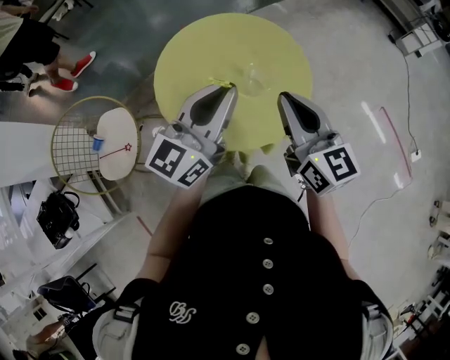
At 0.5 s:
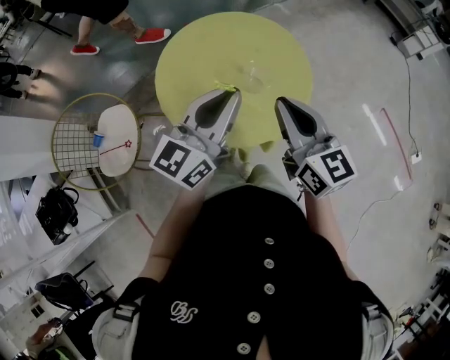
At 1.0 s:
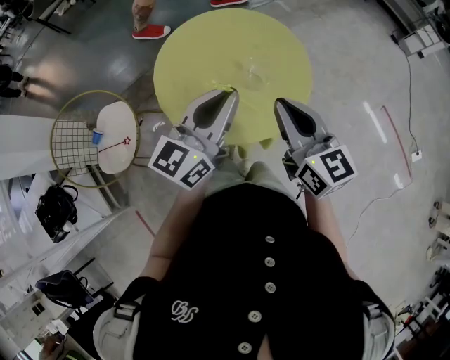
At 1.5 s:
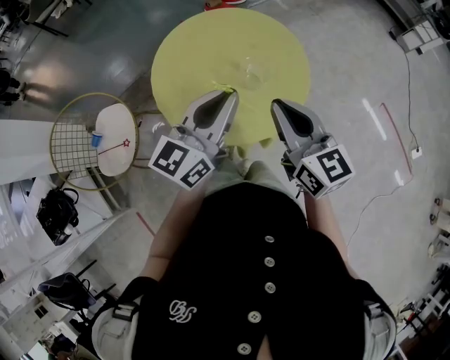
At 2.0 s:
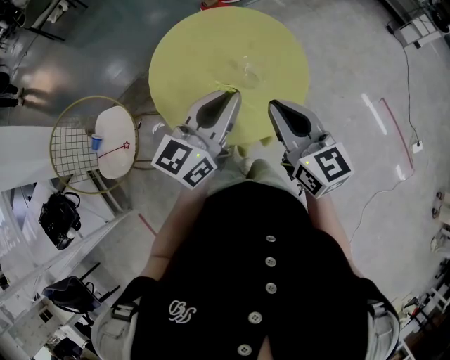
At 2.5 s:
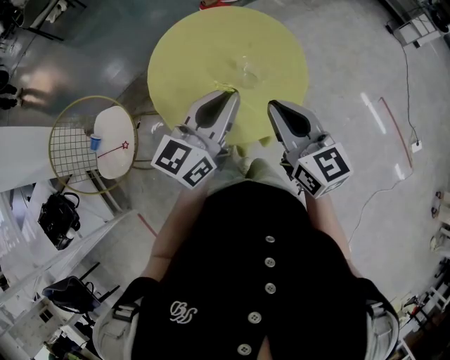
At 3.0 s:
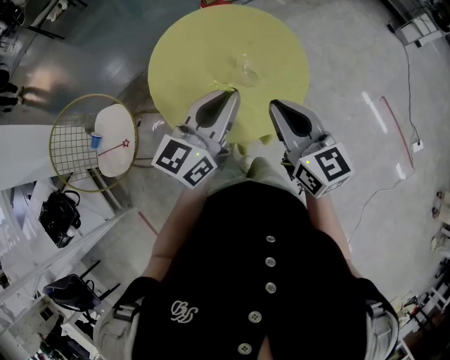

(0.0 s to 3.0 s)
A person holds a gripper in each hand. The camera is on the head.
0.0 s - 3.0 s: The grippers stay close to where they were, moving slightly.

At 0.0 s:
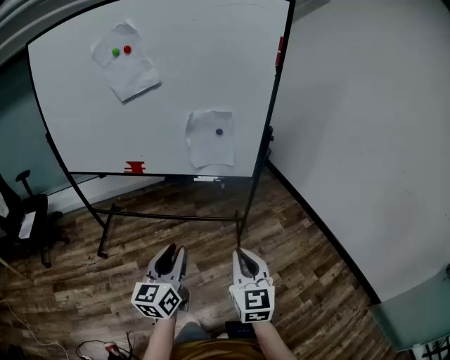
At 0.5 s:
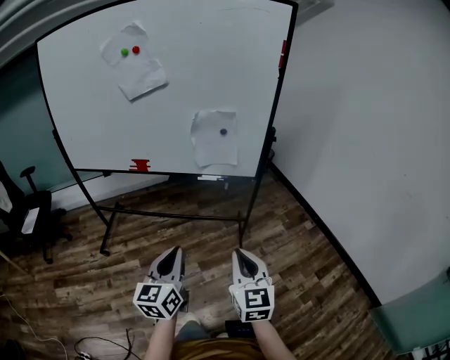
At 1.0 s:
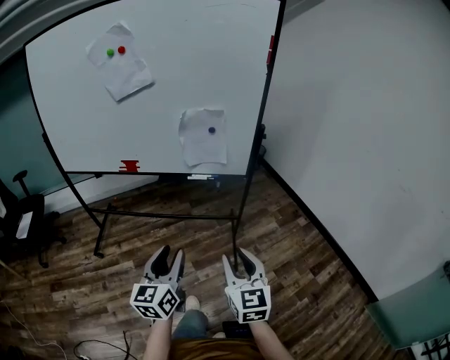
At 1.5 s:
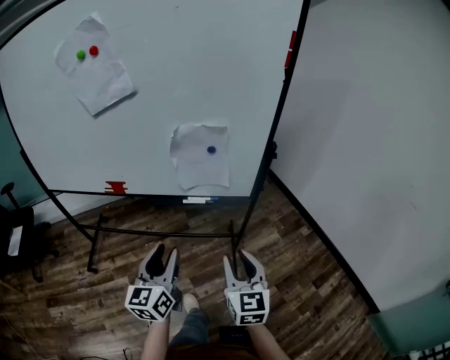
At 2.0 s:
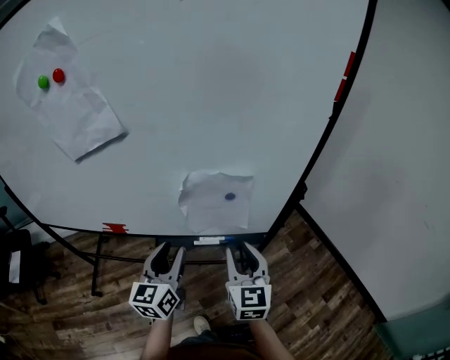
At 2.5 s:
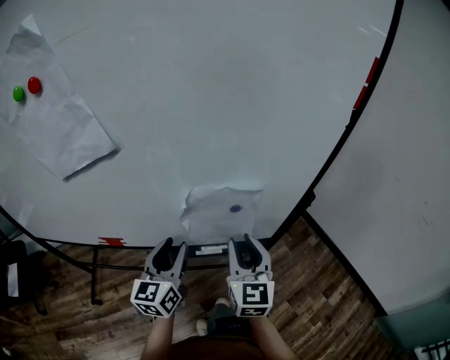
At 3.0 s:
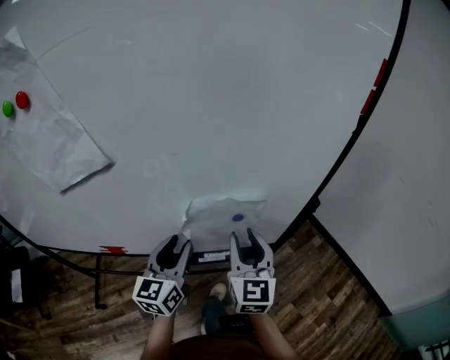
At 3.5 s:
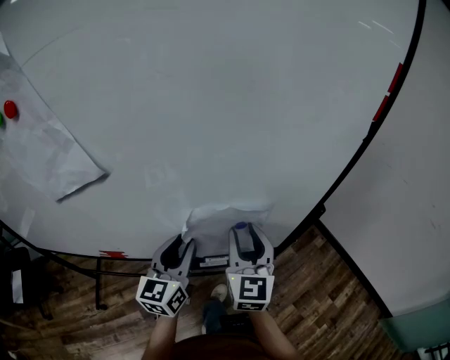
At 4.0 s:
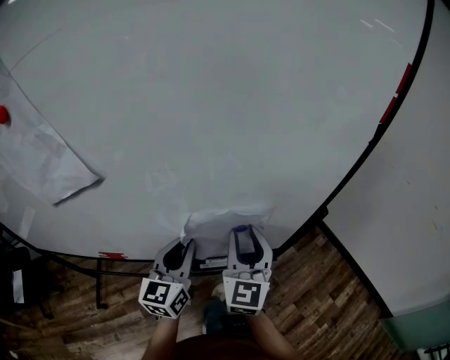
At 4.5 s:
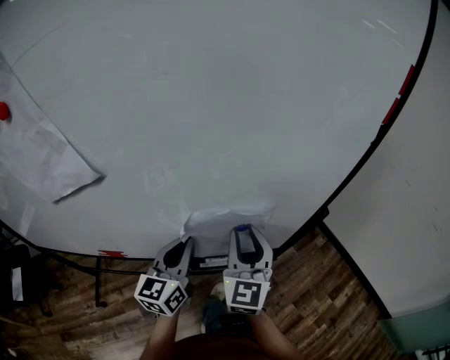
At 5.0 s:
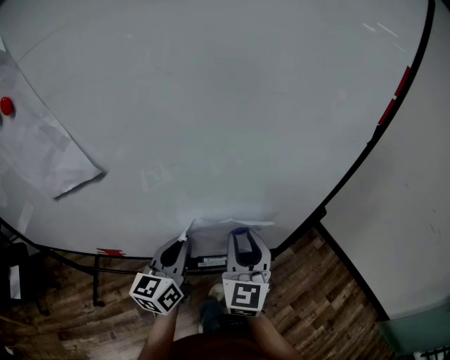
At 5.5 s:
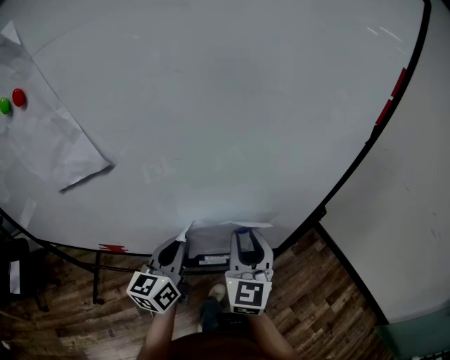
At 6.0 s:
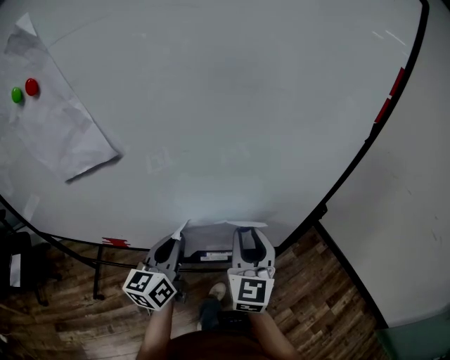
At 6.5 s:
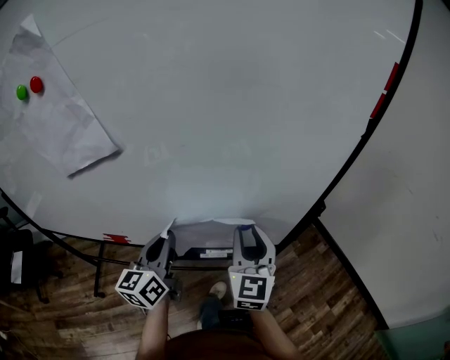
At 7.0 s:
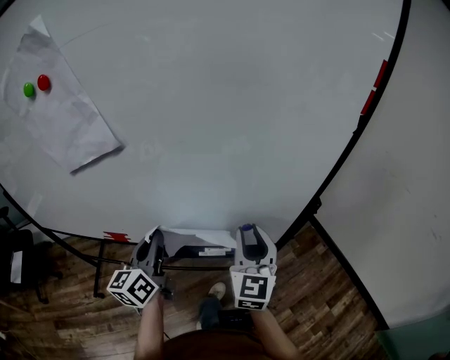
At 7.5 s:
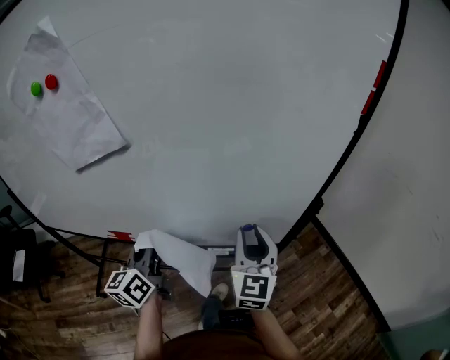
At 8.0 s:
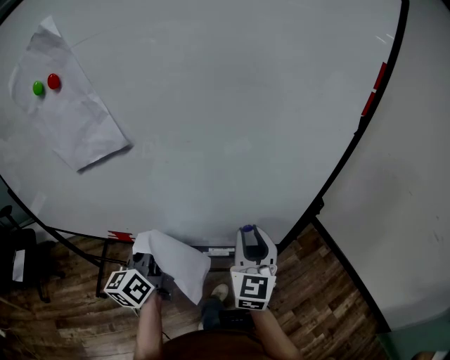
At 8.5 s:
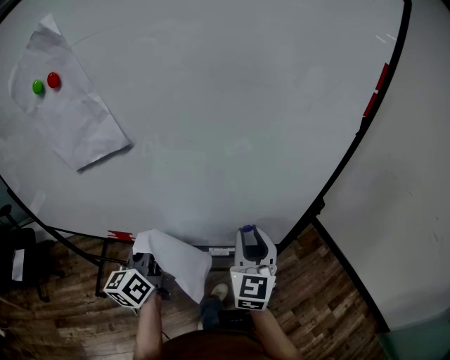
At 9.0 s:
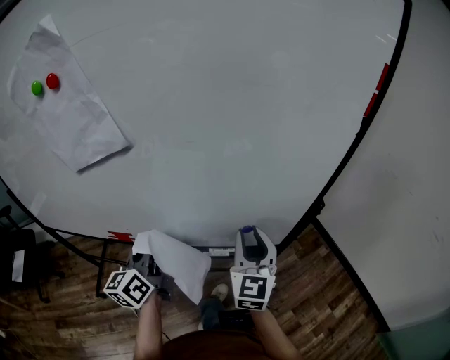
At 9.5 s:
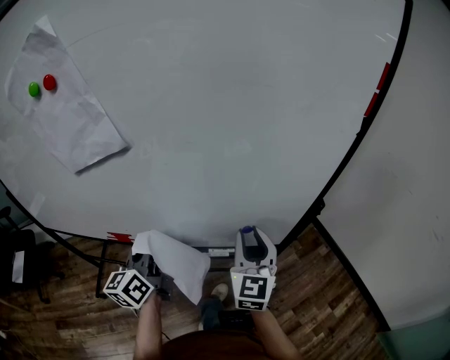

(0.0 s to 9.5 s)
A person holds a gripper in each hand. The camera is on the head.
0.0 s - 2.0 s: Both grippers move forward, about 40 cm. The left gripper closes, then reopens. Meanwhile the right gripper opens up.
2.0 s - 4.0 s: The two grippers go roughly 15 cm forward. The left gripper closes its fingers.
4.0 s - 5.5 s: There are only small adjustments of the grippers.
5.5 s - 7.5 s: The left gripper is displaced to the left and backward by roughly 10 cm.
7.5 s - 9.5 s: Both grippers stay about where they are.

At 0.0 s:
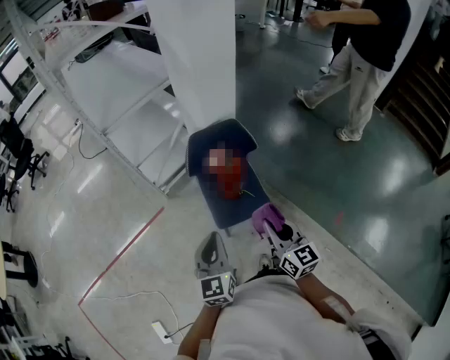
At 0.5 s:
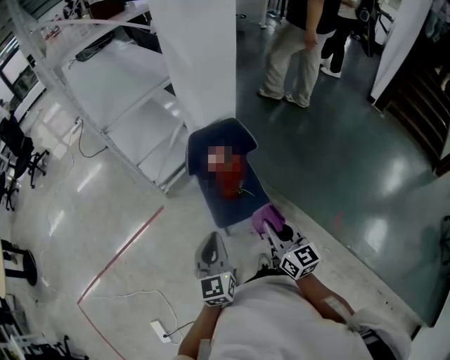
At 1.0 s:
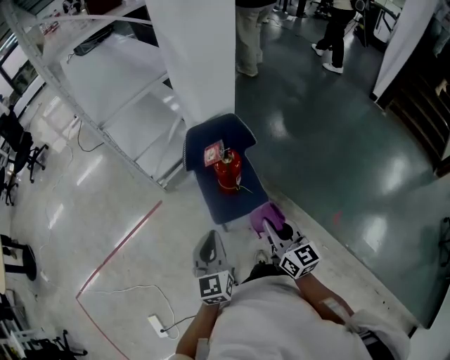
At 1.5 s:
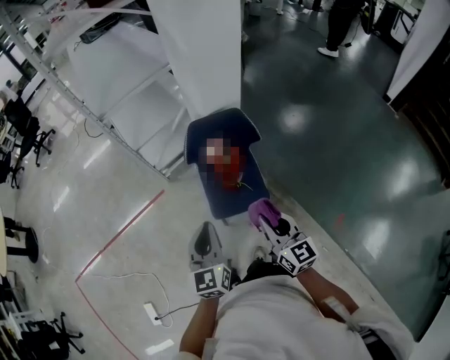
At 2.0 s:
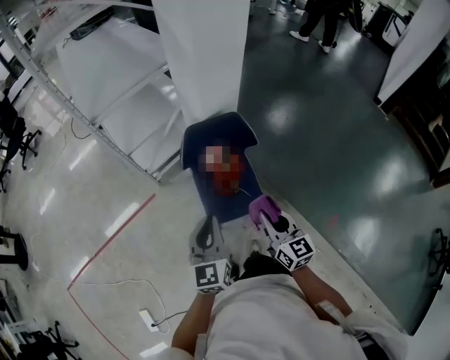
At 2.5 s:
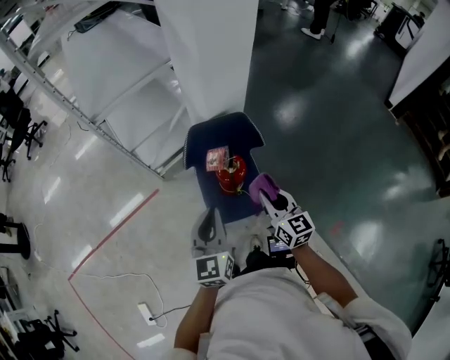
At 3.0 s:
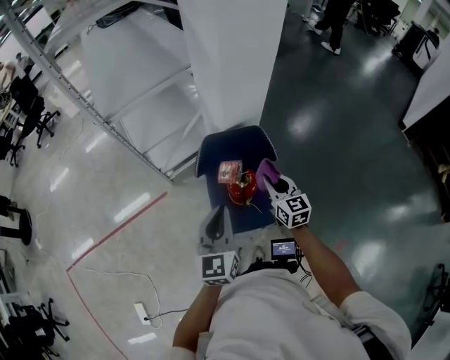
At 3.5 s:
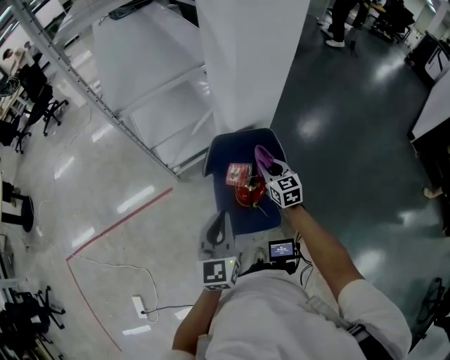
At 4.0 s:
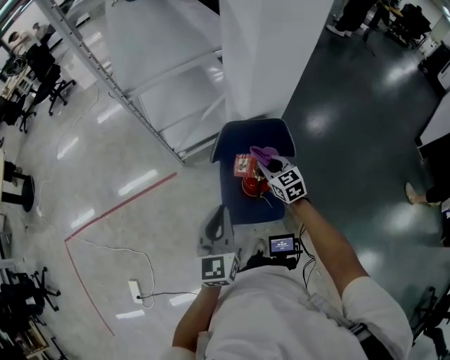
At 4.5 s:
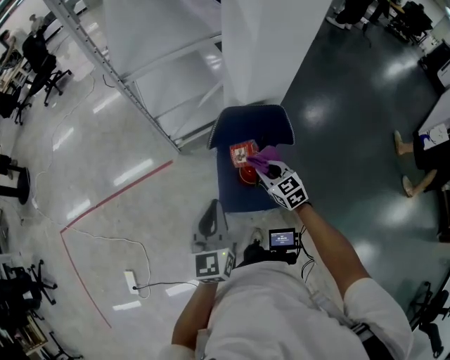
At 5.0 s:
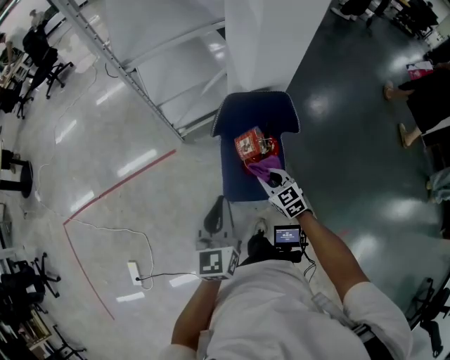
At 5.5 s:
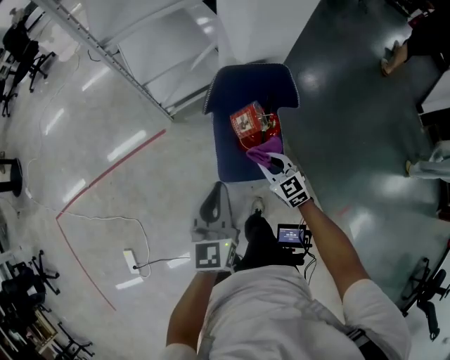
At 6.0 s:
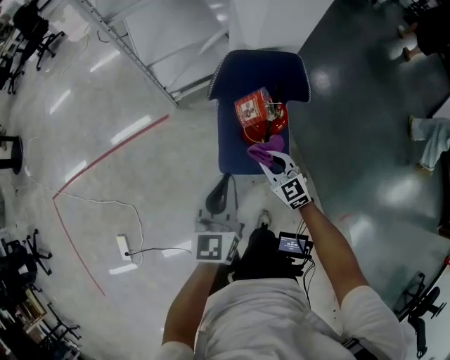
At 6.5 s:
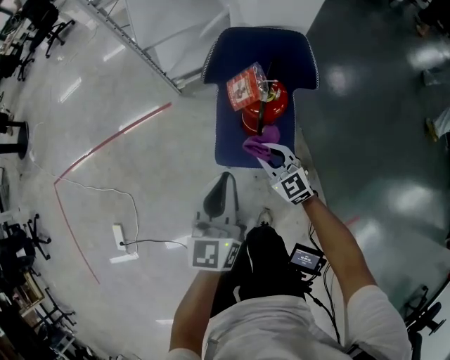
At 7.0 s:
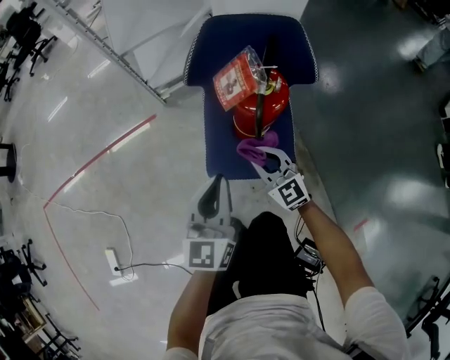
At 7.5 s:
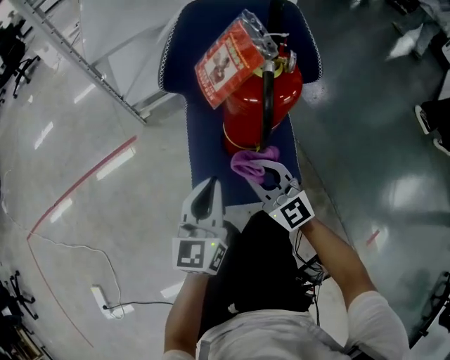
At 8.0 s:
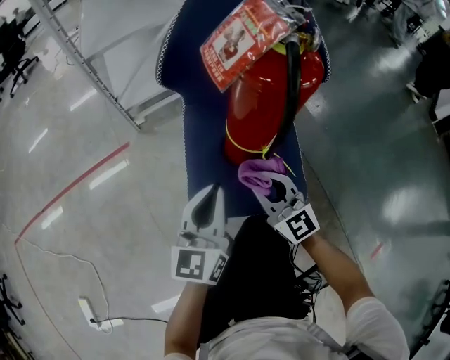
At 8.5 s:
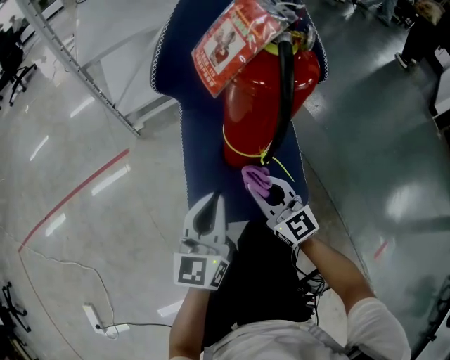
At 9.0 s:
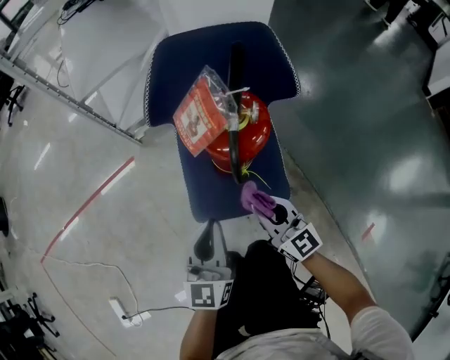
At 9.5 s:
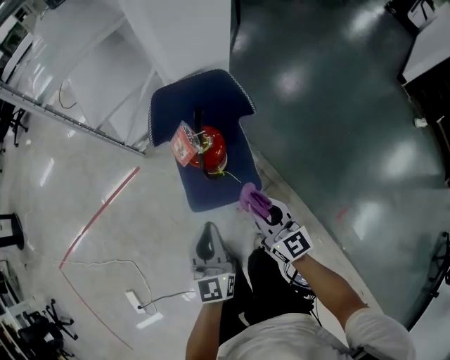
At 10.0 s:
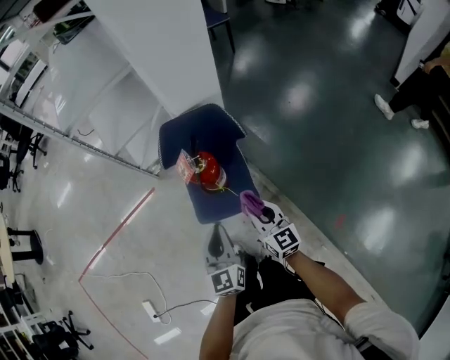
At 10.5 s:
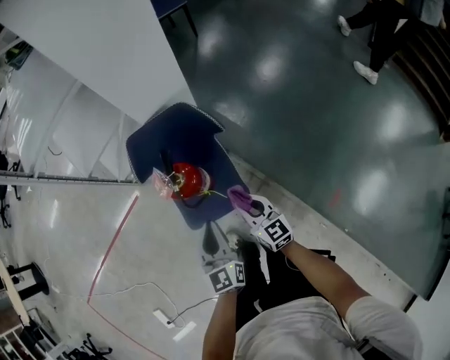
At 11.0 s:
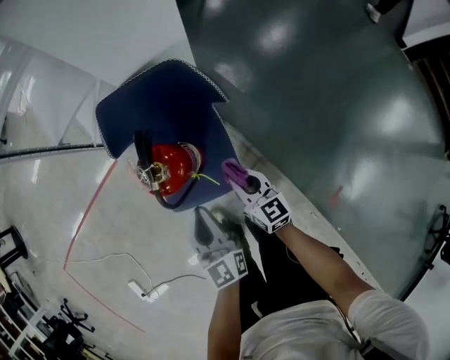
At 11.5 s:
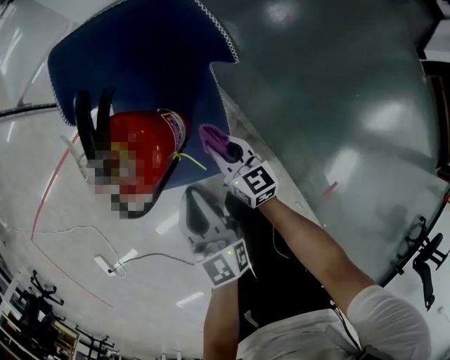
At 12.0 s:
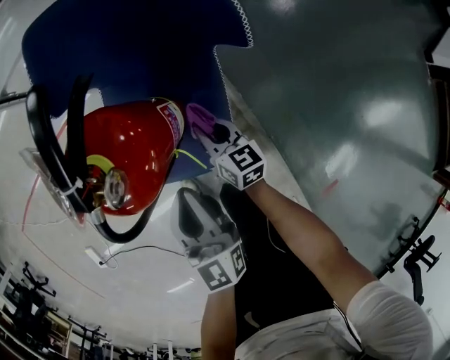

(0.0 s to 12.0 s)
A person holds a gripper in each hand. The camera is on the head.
0.0 s - 2.0 s: The two grippers go approximately 10 cm forward.
2.0 s - 4.0 s: The right gripper travels forward by some 25 cm, and turns by roughly 30 degrees, while the left gripper goes approximately 10 cm forward.
4.0 s - 6.0 s: The right gripper moves backward, downward and to the left, approximately 20 cm. Meanwhile the left gripper moves downward and backward, approximately 10 cm.
6.0 s - 8.0 s: The two grippers go roughly 30 cm downward. The right gripper changes its angle by some 20 degrees.
8.0 s - 10.0 s: Both grippers travel together upward, about 35 cm. The right gripper rotates about 30 degrees.
10.0 s - 12.0 s: The left gripper travels downward and forward by roughly 25 cm, and rotates roughly 20 degrees. The right gripper moves downward and forward, approximately 40 cm, and changes its angle by roughly 30 degrees.

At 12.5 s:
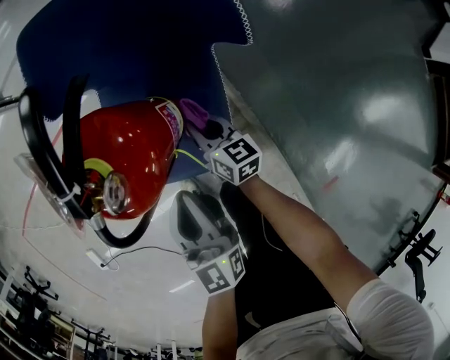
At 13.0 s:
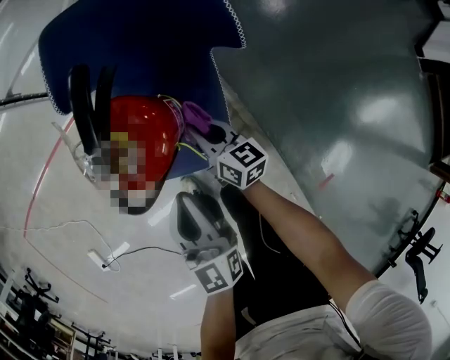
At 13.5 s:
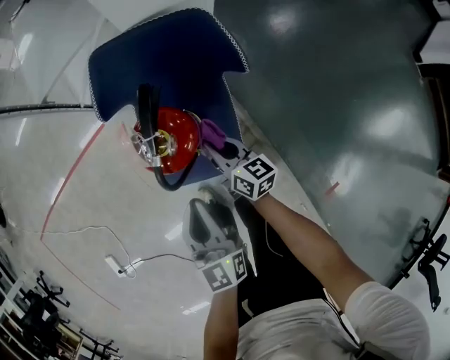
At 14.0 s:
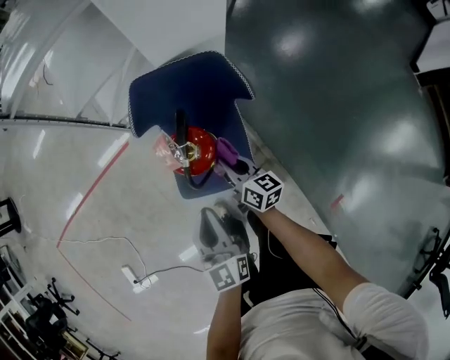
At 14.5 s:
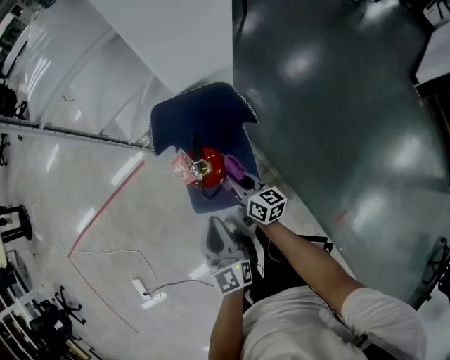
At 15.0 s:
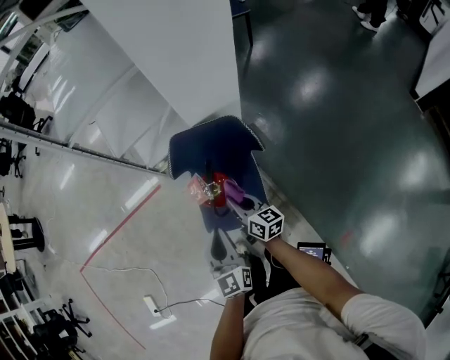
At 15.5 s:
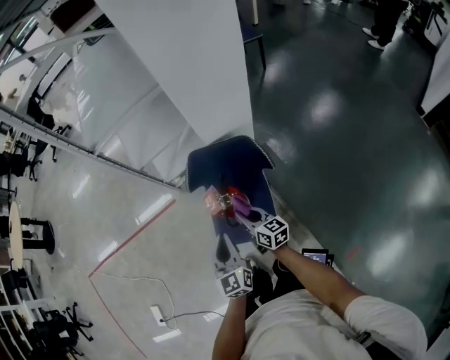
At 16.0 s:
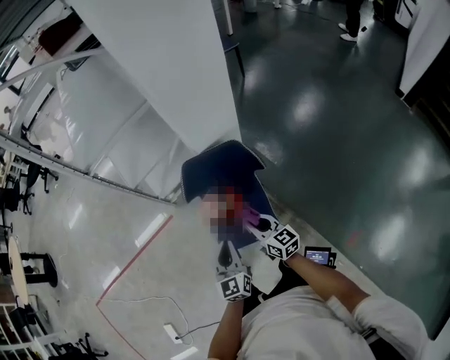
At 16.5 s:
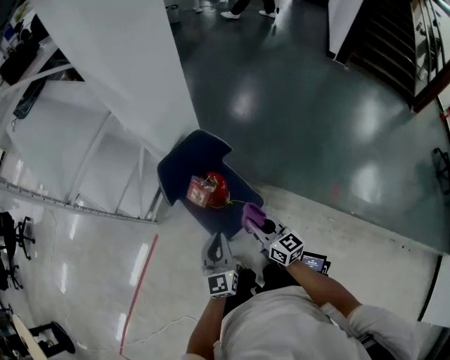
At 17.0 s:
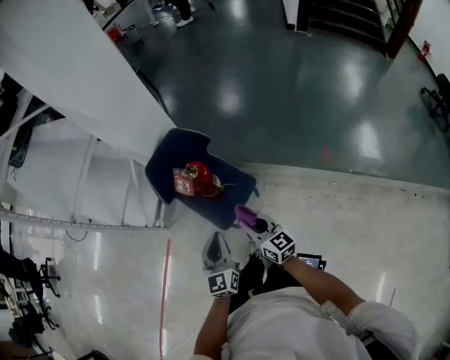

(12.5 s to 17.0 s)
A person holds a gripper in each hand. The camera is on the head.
12.5 s - 14.5 s: Both grippers move upward, about 25 cm.
14.5 s - 17.0 s: The left gripper changes place by roughly 15 cm, and changes its angle by some 50 degrees. The right gripper moves roughly 30 cm, and turns by some 40 degrees.
